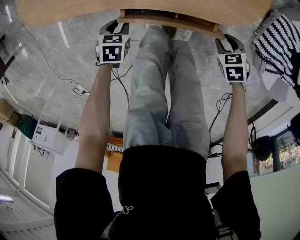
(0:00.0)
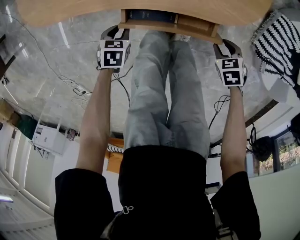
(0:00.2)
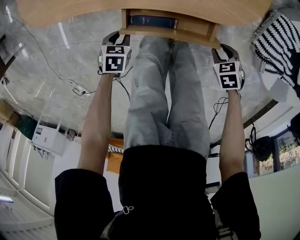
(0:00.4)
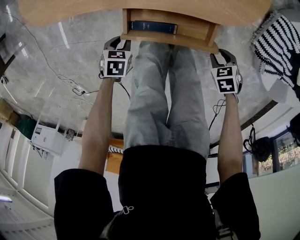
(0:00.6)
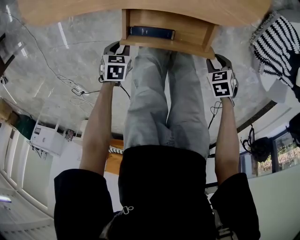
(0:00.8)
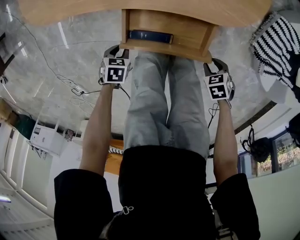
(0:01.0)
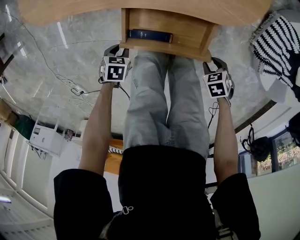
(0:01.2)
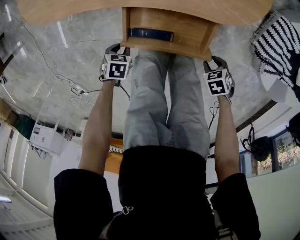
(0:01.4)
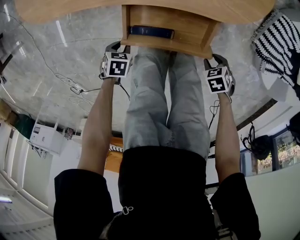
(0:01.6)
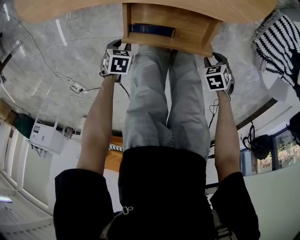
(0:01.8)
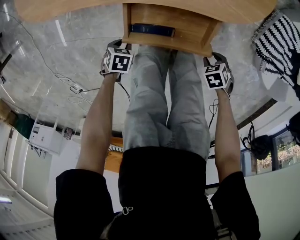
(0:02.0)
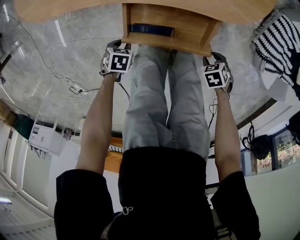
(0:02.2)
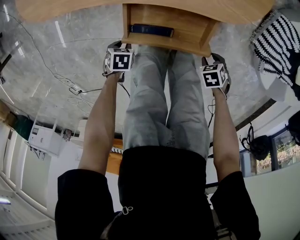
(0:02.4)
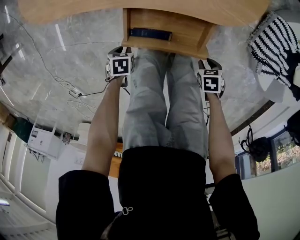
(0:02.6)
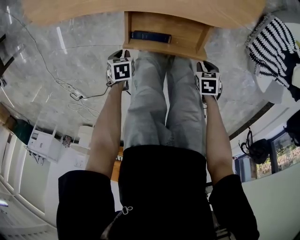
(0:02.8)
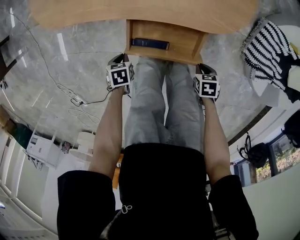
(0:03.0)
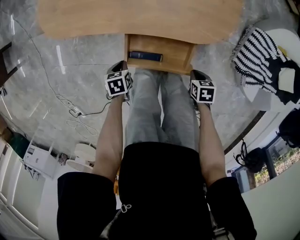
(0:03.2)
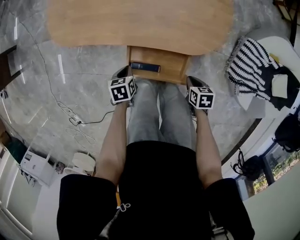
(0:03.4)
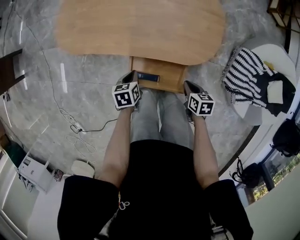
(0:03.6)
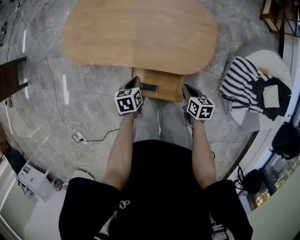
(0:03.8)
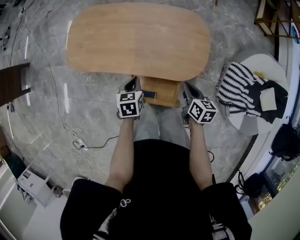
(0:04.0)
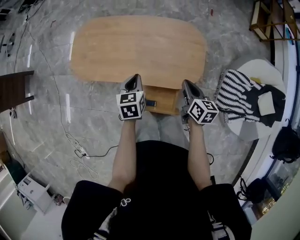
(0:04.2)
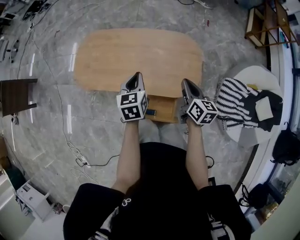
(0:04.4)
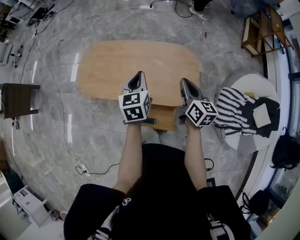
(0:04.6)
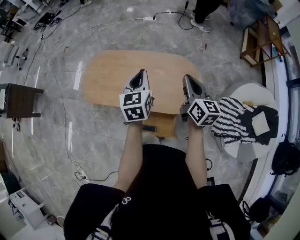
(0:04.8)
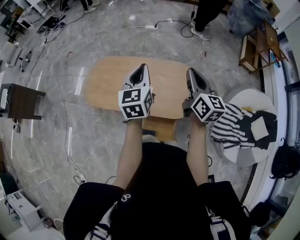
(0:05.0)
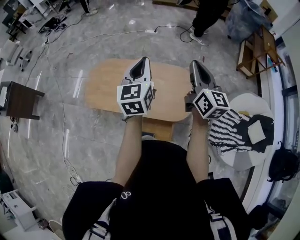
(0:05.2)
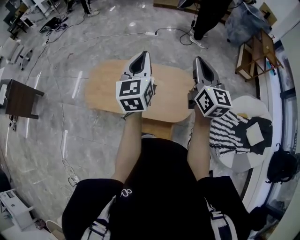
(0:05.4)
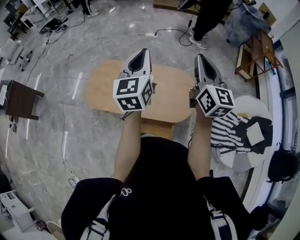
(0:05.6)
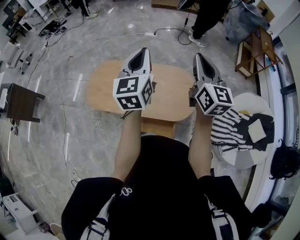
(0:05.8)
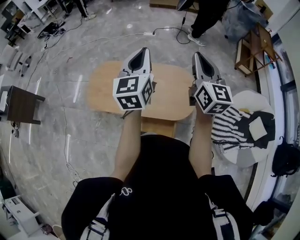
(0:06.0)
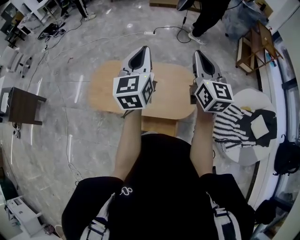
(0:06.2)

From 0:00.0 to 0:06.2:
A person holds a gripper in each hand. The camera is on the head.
From 0:00.0 to 0:01.6: The left gripper changes place by about 15 cm. The right gripper changes place by some 15 cm.
From 0:01.6 to 0:03.2: Both grippers travel together upward, roughly 10 cm. The right gripper swivels roughly 30 degrees, and closes its fingers. The left gripper rotates some 30 degrees.
From 0:03.2 to 0:04.6: The two grippers go some 40 cm upward. The right gripper angles its fingers upward, by roughly 60 degrees, while the left gripper angles its fingers upward, by some 50 degrees.
From 0:04.6 to 0:06.2: Both grippers move upward, approximately 25 cm. The left gripper turns by about 30 degrees, while the right gripper changes its angle by approximately 30 degrees.

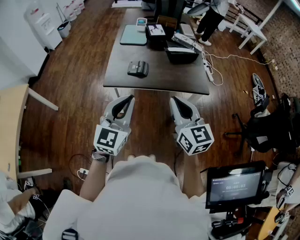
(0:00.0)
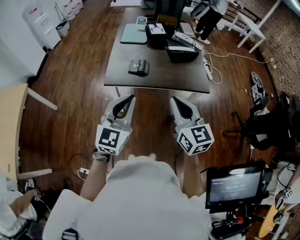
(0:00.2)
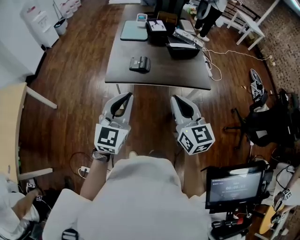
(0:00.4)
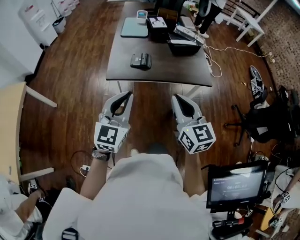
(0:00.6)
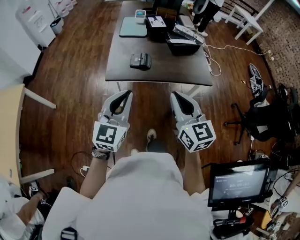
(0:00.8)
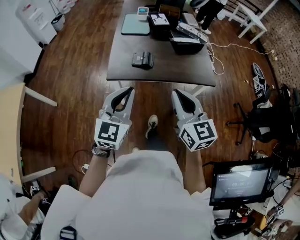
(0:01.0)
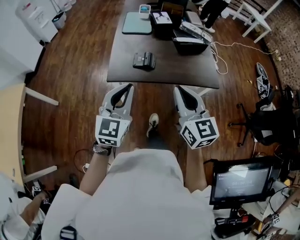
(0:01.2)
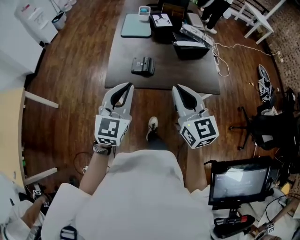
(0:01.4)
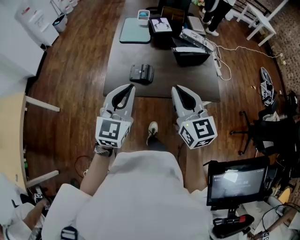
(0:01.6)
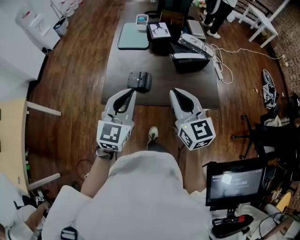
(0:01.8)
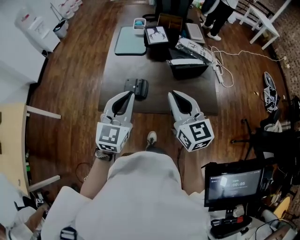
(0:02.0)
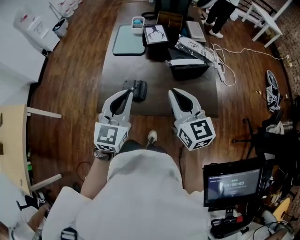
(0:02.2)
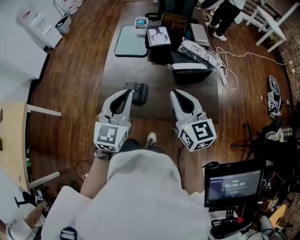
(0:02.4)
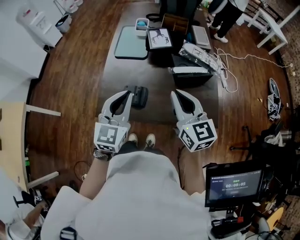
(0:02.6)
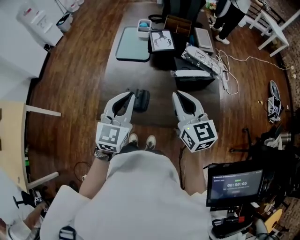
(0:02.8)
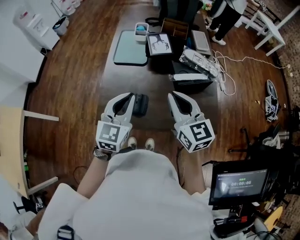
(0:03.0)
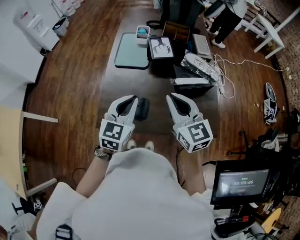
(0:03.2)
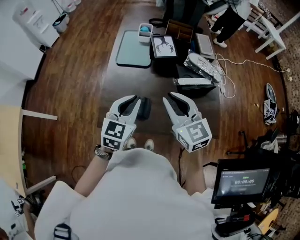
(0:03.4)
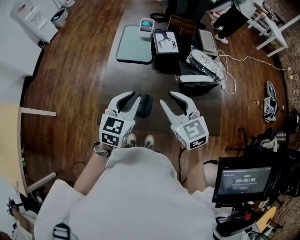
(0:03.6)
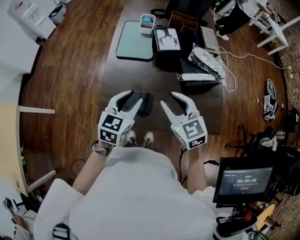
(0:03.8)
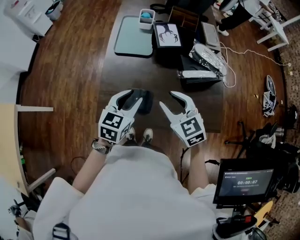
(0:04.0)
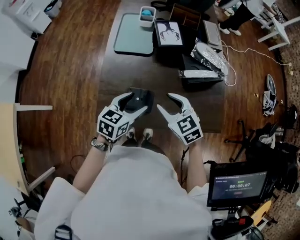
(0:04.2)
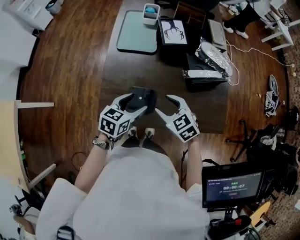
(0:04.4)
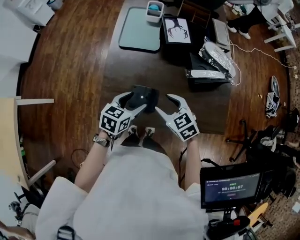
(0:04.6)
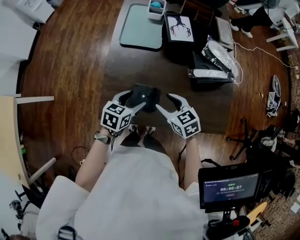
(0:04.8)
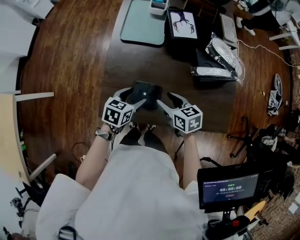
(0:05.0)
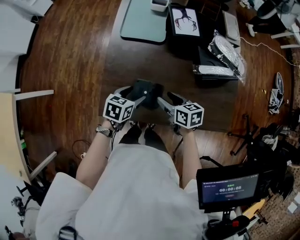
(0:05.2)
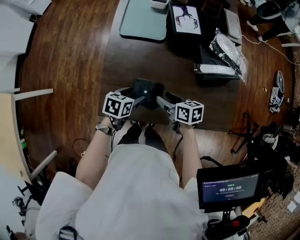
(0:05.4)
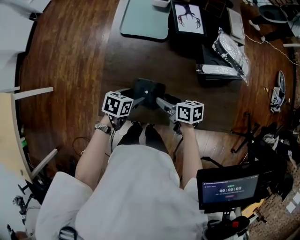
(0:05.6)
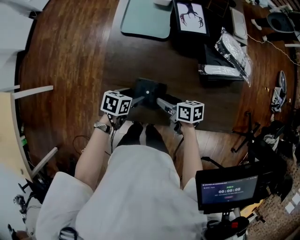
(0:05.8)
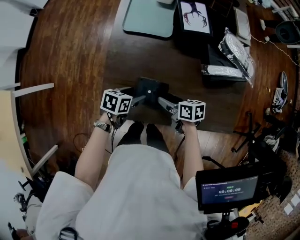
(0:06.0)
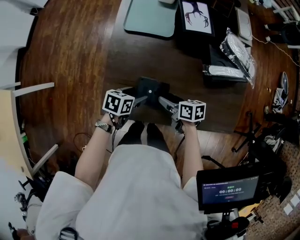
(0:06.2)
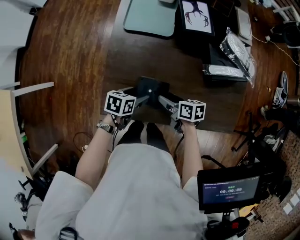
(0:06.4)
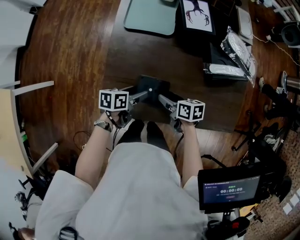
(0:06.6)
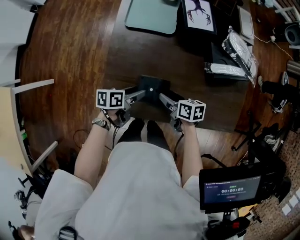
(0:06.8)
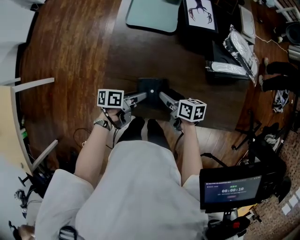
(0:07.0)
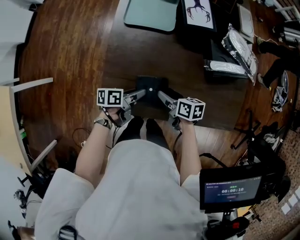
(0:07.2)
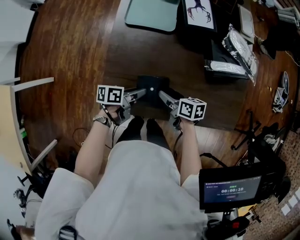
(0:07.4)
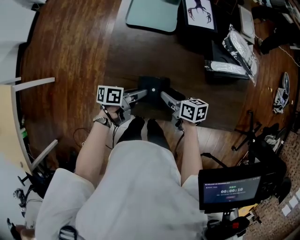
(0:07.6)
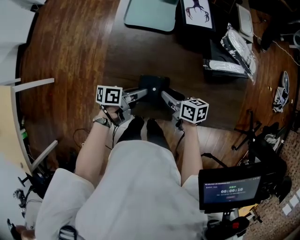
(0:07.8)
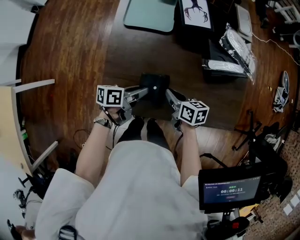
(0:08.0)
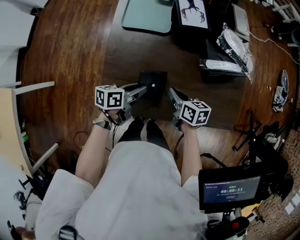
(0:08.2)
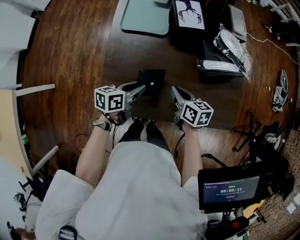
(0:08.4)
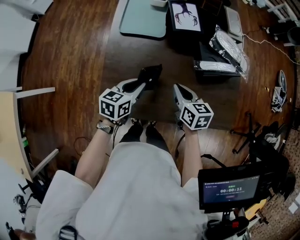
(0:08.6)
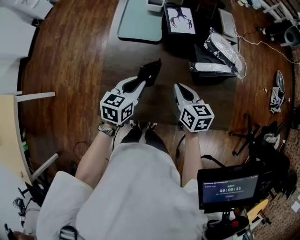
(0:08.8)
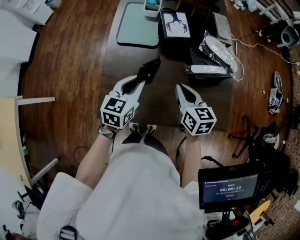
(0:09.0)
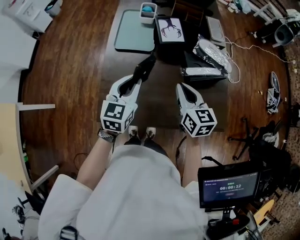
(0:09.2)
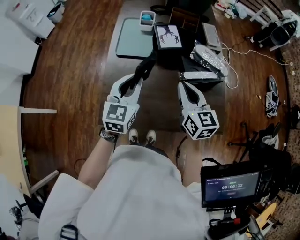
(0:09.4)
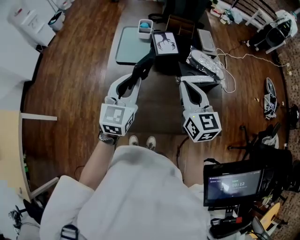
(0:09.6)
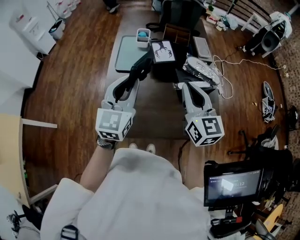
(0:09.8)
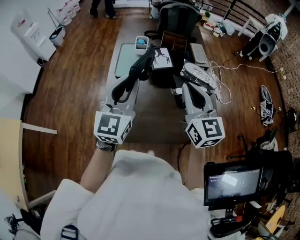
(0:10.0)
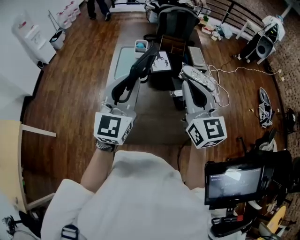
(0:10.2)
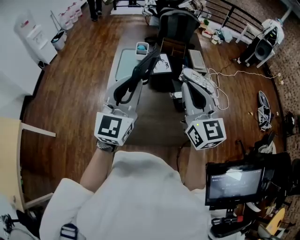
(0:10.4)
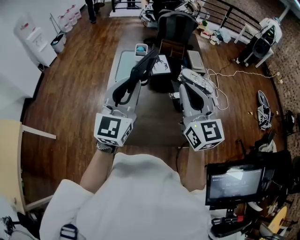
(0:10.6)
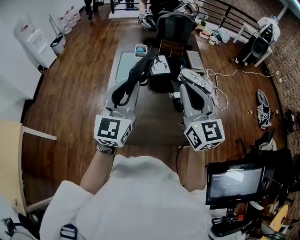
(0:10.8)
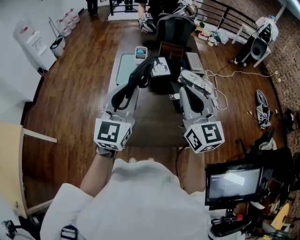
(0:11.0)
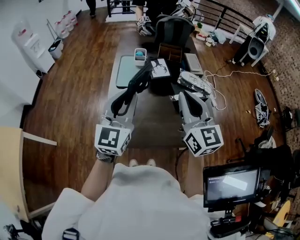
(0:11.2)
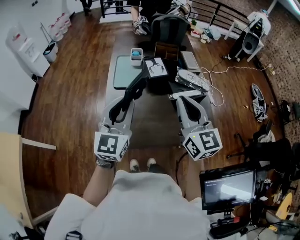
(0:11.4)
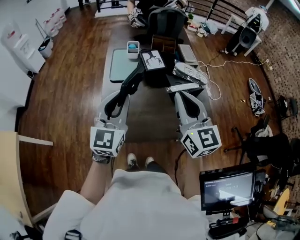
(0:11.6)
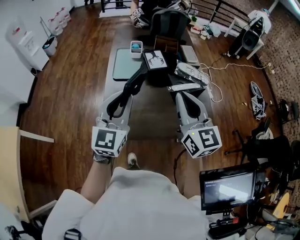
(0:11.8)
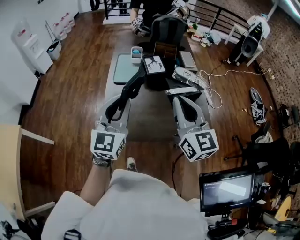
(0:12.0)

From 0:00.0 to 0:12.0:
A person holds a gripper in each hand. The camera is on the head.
From 0:00.0 to 0:01.6: Both grippers travel together forward, some 15 cm.
From 0:01.6 to 0:03.0: The two grippers go about 15 cm forward.
From 0:03.0 to 0:04.4: Both grippers travel together downward, about 15 cm. The left gripper rotates about 40 degrees, and opens up, while the right gripper tips its fingers downward by roughly 30 degrees, and opens its fingers.
From 0:04.4 to 0:06.0: Both grippers move downward, about 15 cm. The right gripper rolls clockwise, seen from behind, by some 50 degrees; the left gripper rotates roughly 30 degrees.
From 0:06.0 to 0:07.6: The left gripper swivels some 30 degrees, and closes.
From 0:07.6 to 0:09.0: The left gripper heads upward and forward, covering about 15 cm, and rotates around the line of its fingers by roughly 50 degrees, clockwise from behind. Meanwhile the right gripper moves upward, to the right and forward, roughly 20 cm, turns by some 40 degrees, and closes its fingers.
From 0:09.0 to 0:10.4: The two grippers go approximately 25 cm upward. The left gripper tips its fingers upward by roughly 30 degrees. The right gripper angles its fingers upward, by about 30 degrees.
From 0:10.4 to 0:12.0: Both grippers travel together backward, roughly 10 cm.

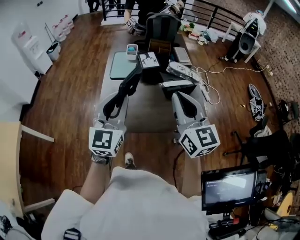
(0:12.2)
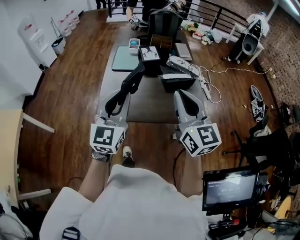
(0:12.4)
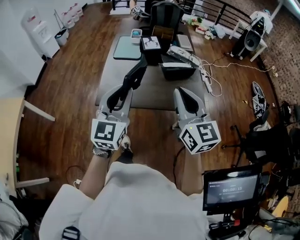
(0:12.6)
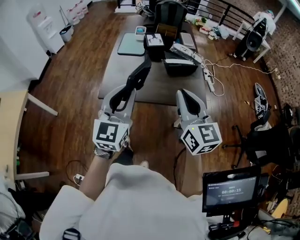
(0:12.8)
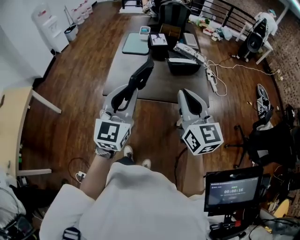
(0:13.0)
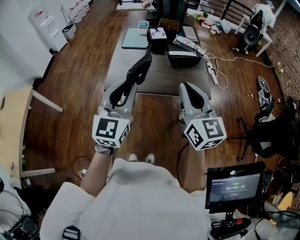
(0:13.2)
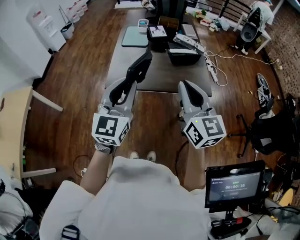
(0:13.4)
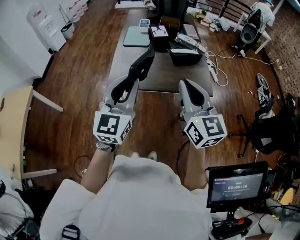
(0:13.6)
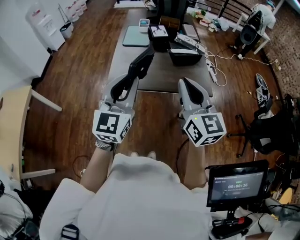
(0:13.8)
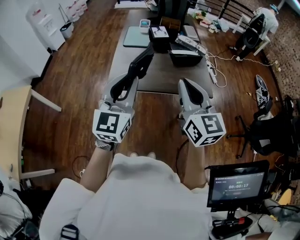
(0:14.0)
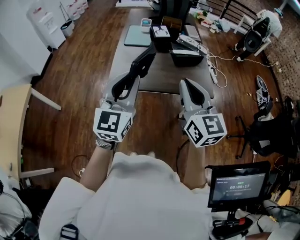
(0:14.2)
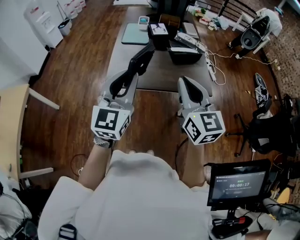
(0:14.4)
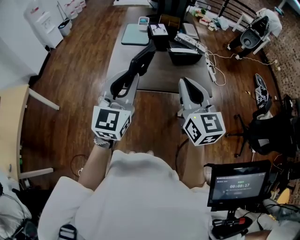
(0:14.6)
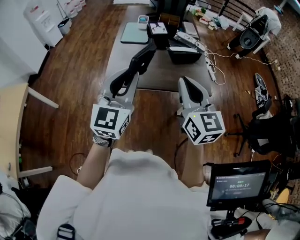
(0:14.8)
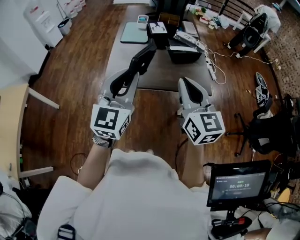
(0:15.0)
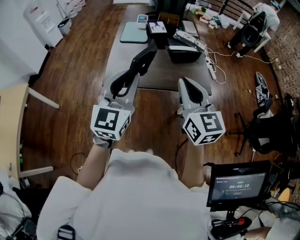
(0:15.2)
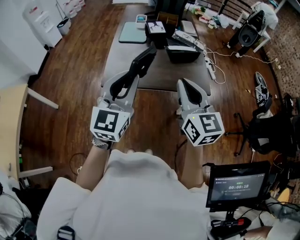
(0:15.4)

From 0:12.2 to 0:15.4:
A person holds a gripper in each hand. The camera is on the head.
From 0:12.2 to 0:13.8: Both grippers travel together backward, roughly 15 cm.
From 0:13.8 to 0:15.4: The grippers stay close to where they were, moving slightly.

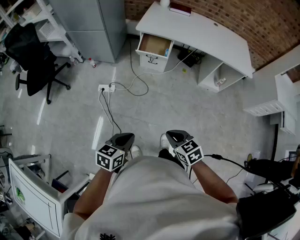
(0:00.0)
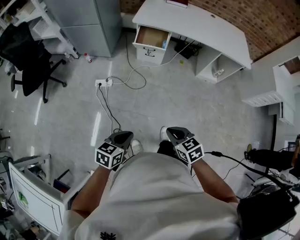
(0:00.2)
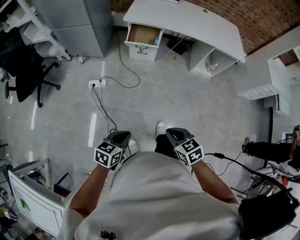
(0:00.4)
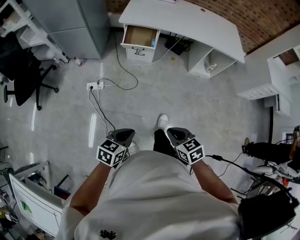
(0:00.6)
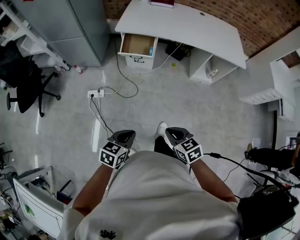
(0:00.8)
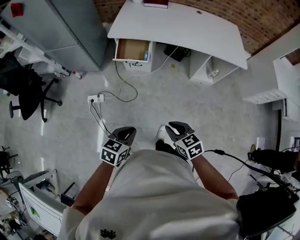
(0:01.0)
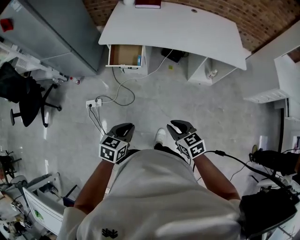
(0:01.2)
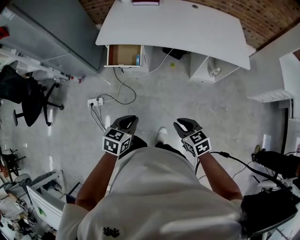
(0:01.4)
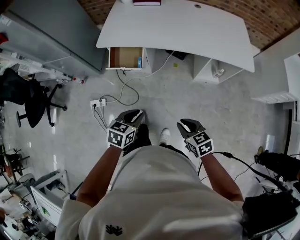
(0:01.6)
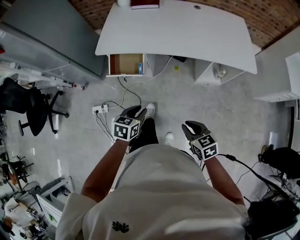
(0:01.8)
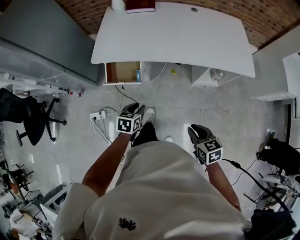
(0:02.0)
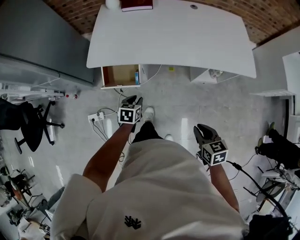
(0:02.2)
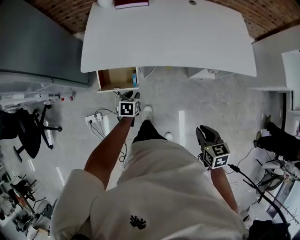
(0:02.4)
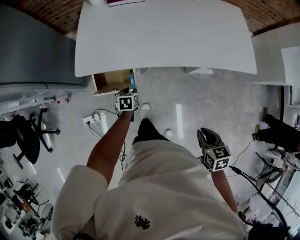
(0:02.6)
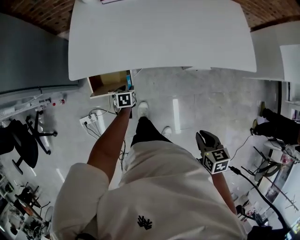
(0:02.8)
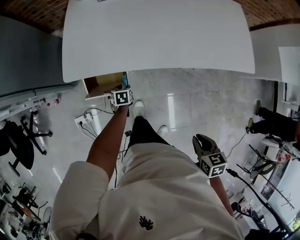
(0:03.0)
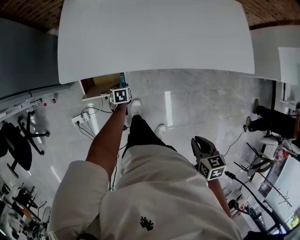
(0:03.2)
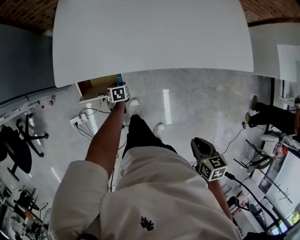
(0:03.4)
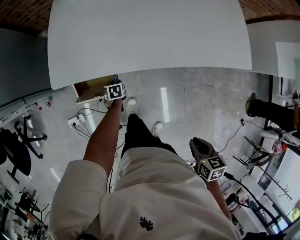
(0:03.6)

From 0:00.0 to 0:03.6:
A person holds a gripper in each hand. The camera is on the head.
From 0:00.0 to 0:01.8: The two grippers travel together, forward and to the right, some 50 cm.
From 0:01.8 to 0:03.6: The right gripper is displaced forward by roughly 15 cm, and rotates roughly 40 degrees; the left gripper is displaced forward and downward by some 50 cm, and changes its angle by about 30 degrees.
